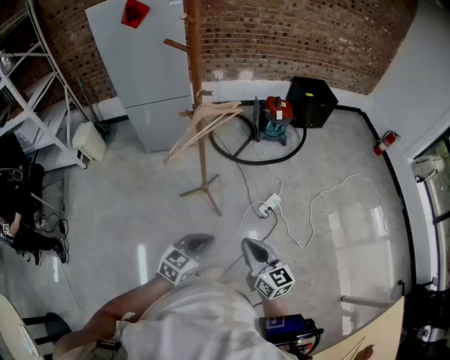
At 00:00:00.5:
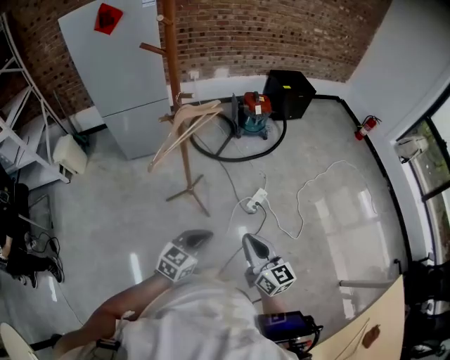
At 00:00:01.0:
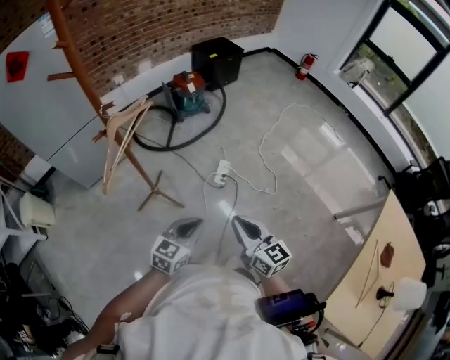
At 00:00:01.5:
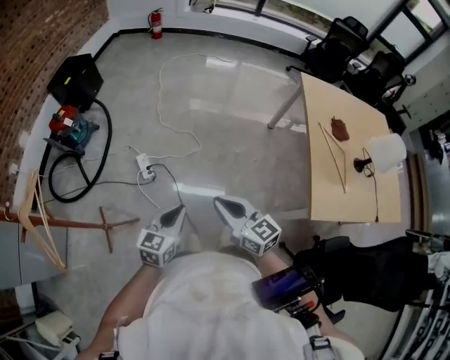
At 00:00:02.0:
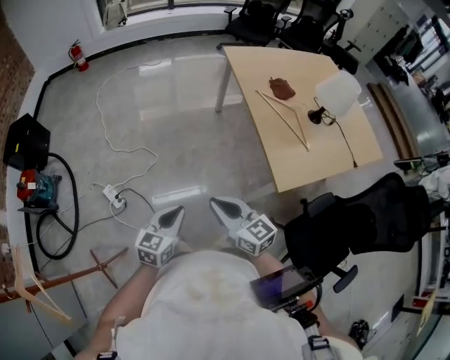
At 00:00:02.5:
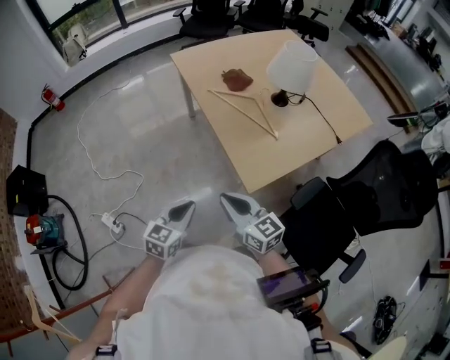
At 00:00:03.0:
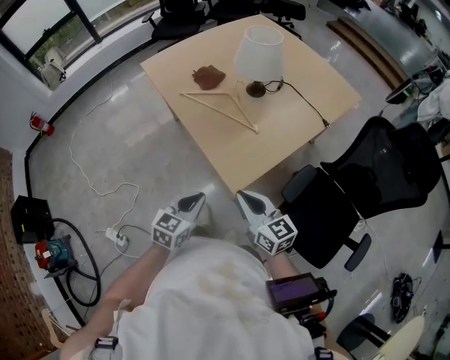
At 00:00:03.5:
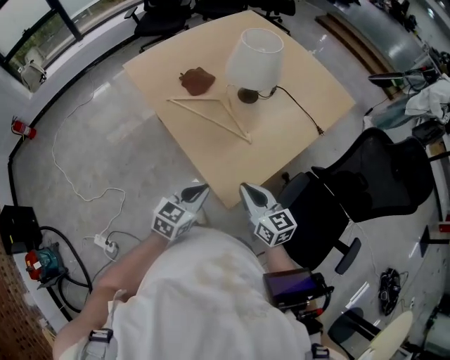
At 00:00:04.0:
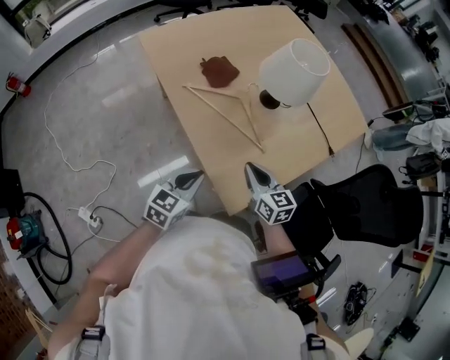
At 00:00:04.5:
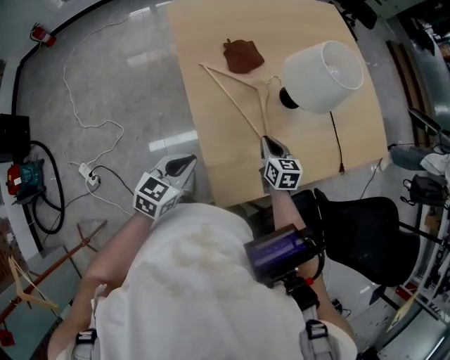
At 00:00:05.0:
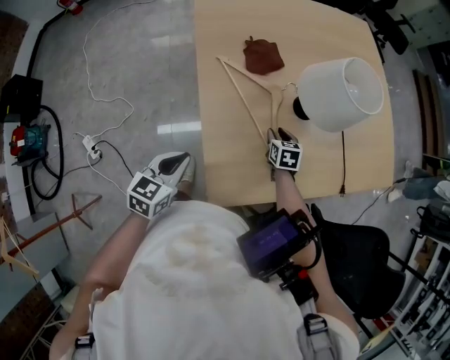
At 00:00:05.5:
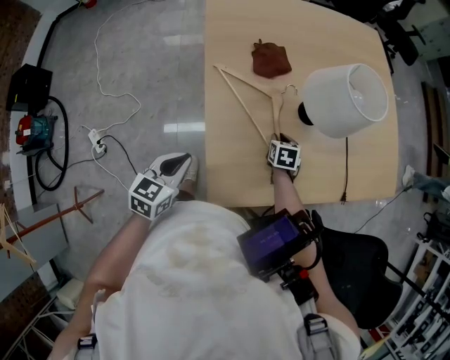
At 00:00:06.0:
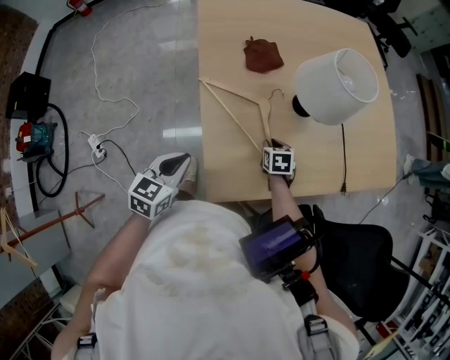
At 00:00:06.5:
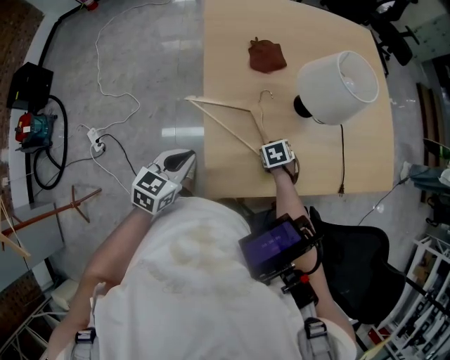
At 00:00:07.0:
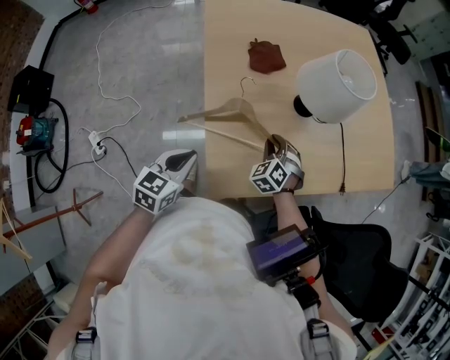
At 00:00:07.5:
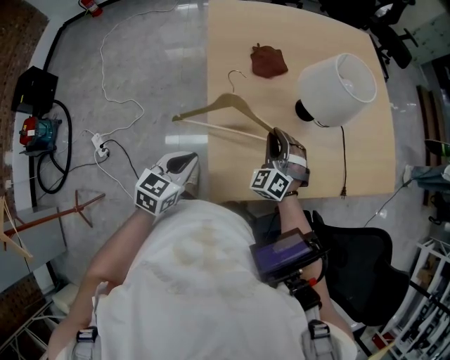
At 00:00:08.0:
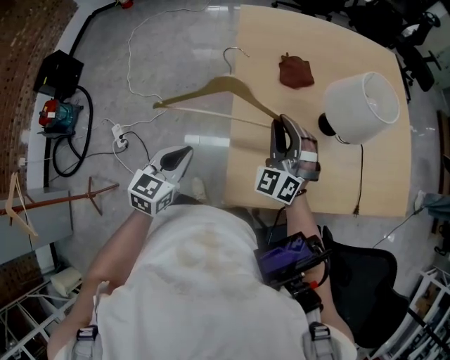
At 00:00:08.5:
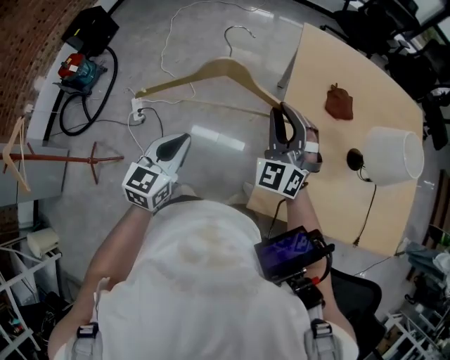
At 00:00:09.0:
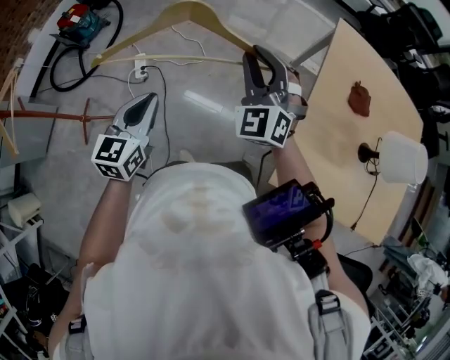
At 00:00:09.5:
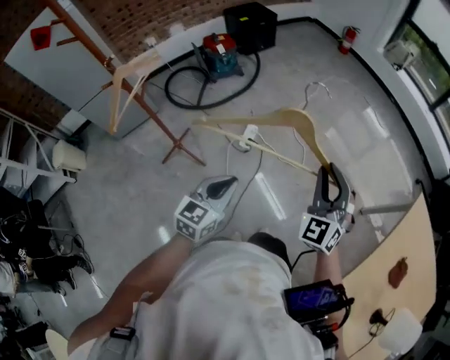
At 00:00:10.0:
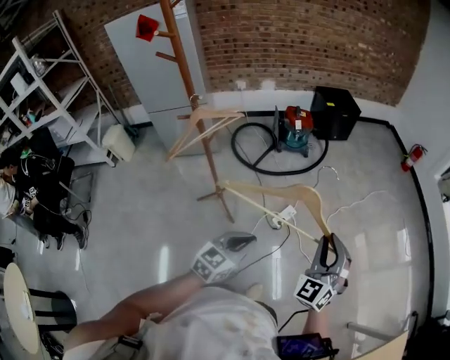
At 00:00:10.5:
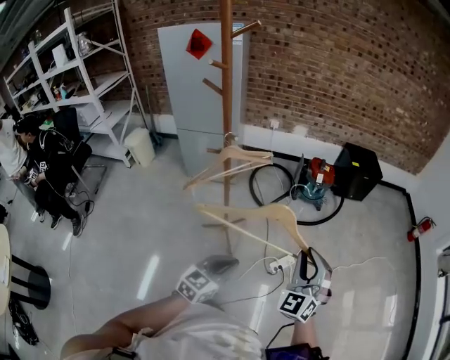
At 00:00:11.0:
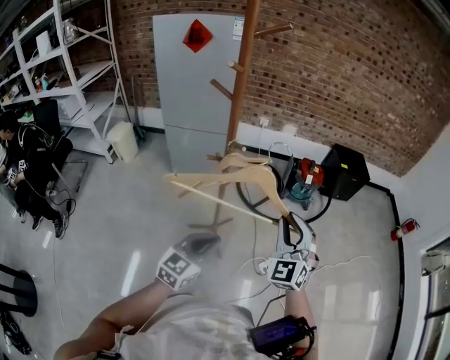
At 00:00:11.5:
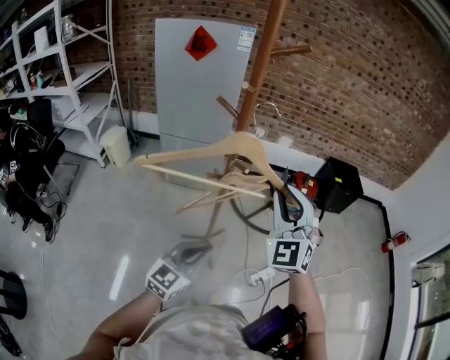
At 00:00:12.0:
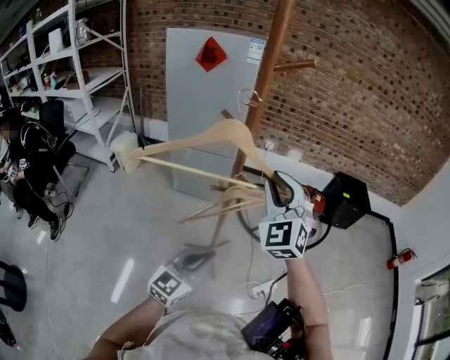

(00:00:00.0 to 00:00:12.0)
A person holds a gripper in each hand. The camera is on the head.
00:00:00.0 - 00:00:02.0: The right gripper moves roughly 35 cm, and rotates roughly 80 degrees, while the left gripper changes place by about 35 cm, and turns by roughly 80 degrees.
00:00:02.0 - 00:00:04.0: Both grippers are carried some 50 cm. The left gripper swivels approximately 30 degrees. Meanwhile the right gripper changes its angle by approximately 40 degrees.
00:00:04.0 - 00:00:06.0: The right gripper heads downward, forward and to the right, covering roughly 20 cm, and tilts its fingers roughly 40 degrees downward. Meanwhile the left gripper turns by some 30 degrees.
00:00:06.0 - 00:00:08.0: The right gripper is displaced upward by about 25 cm, and tips its fingers upward by about 50 degrees, while the left gripper shifts by roughly 10 cm.
00:00:08.0 - 00:00:10.0: Both grippers are carried some 70 cm. The right gripper swivels about 70 degrees; the left gripper changes its angle by some 70 degrees.
00:00:10.0 - 00:00:12.0: The left gripper ends up some 30 cm from where it was, and rotates roughly 30 degrees, while the right gripper shifts by roughly 60 cm, and changes its angle by some 40 degrees.

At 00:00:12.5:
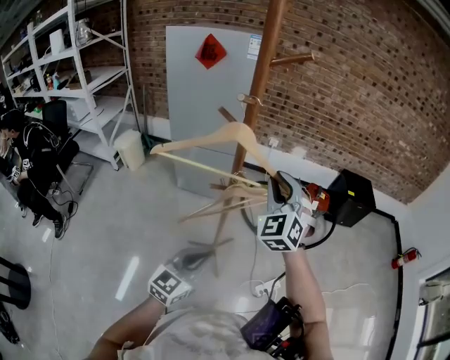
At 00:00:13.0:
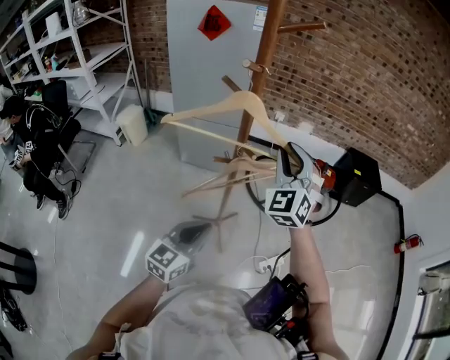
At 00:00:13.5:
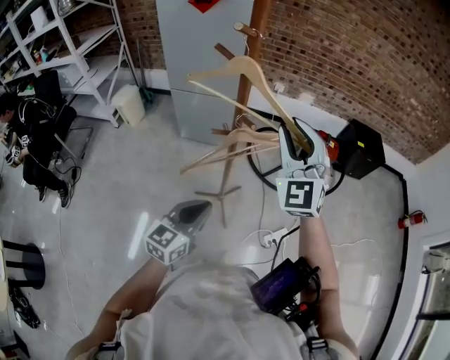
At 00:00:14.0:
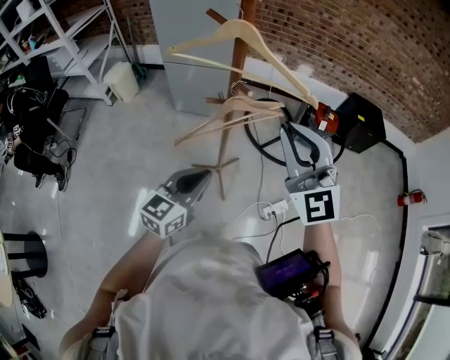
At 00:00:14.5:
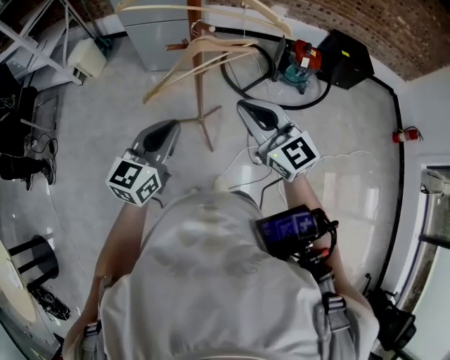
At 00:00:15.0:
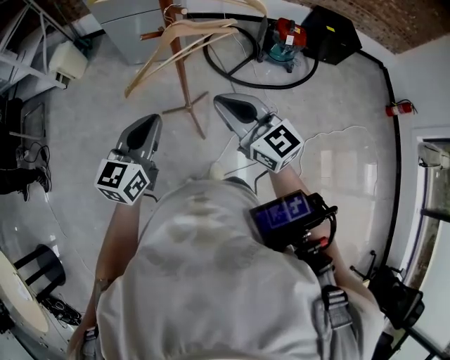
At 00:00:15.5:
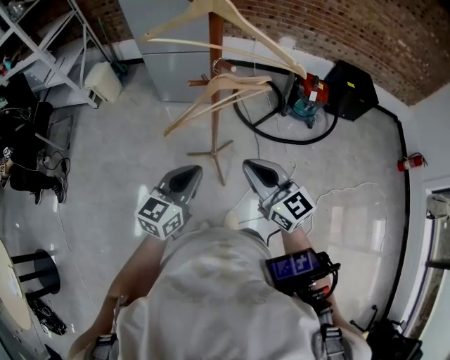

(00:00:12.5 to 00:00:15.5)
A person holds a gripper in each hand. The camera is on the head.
00:00:12.5 - 00:00:14.0: The right gripper shifts about 10 cm backward, and rotates roughly 30 degrees.
00:00:14.0 - 00:00:15.5: The right gripper travels downward and backward by some 20 cm, and rolls clockwise, seen from behind, by about 40 degrees.

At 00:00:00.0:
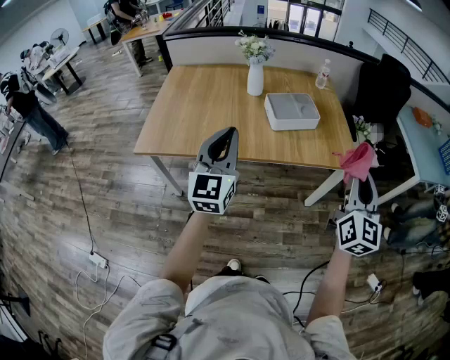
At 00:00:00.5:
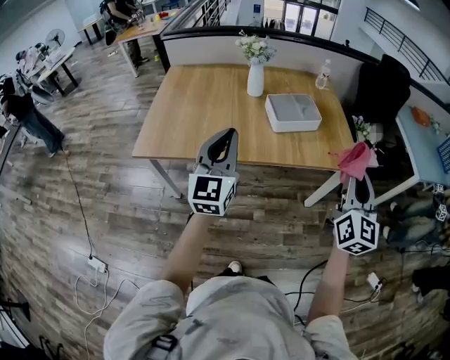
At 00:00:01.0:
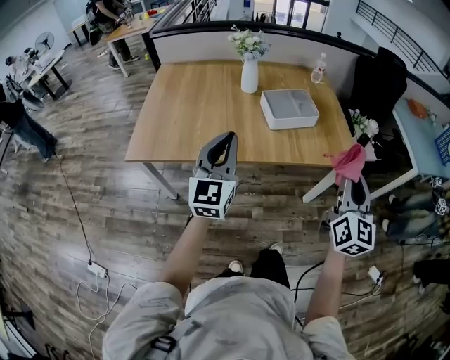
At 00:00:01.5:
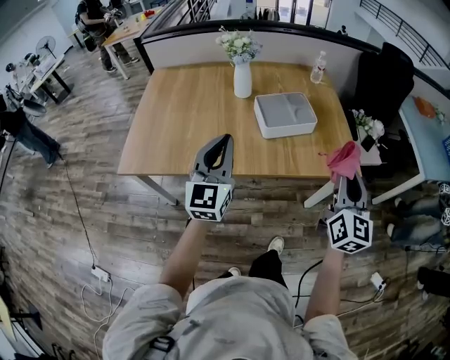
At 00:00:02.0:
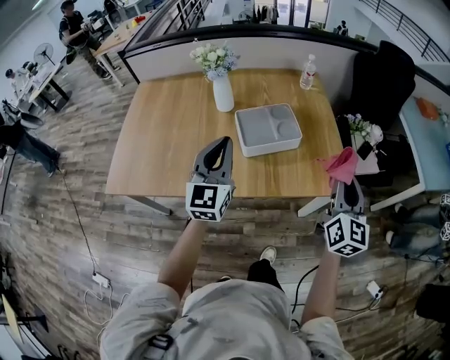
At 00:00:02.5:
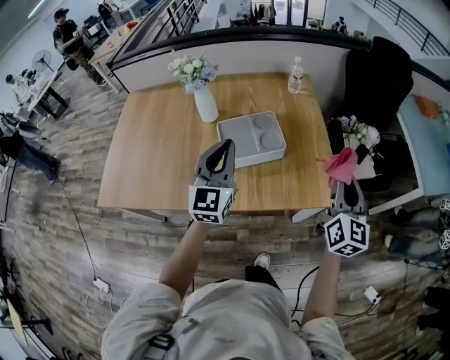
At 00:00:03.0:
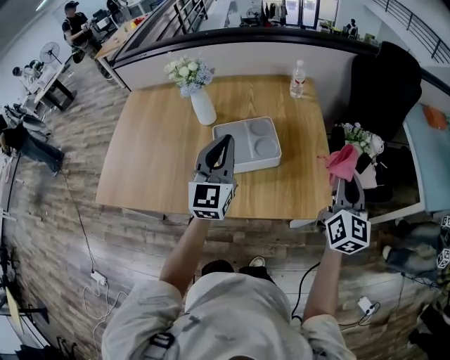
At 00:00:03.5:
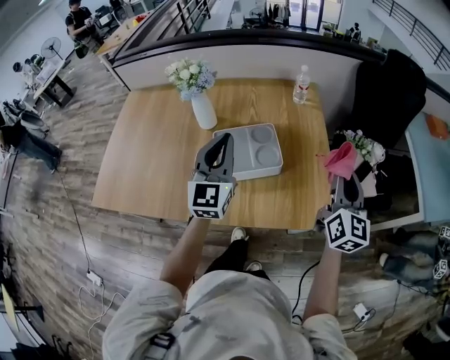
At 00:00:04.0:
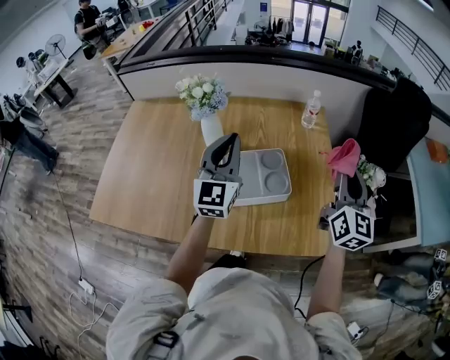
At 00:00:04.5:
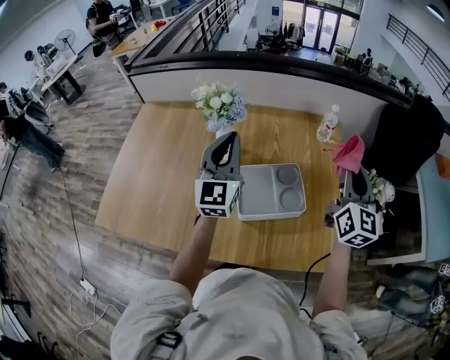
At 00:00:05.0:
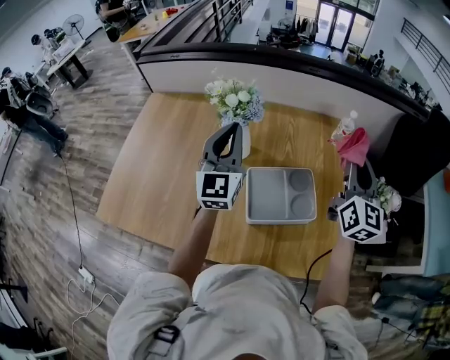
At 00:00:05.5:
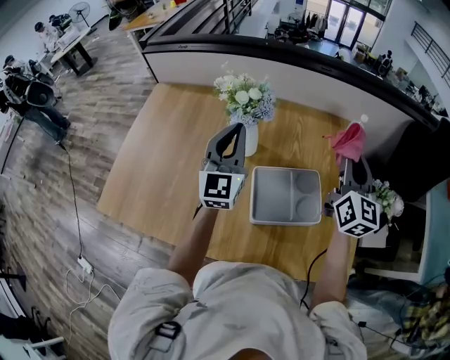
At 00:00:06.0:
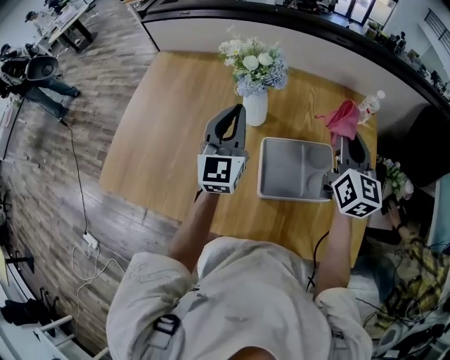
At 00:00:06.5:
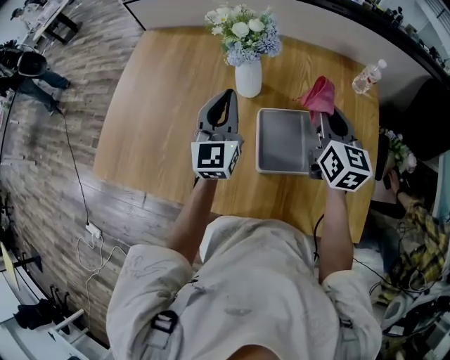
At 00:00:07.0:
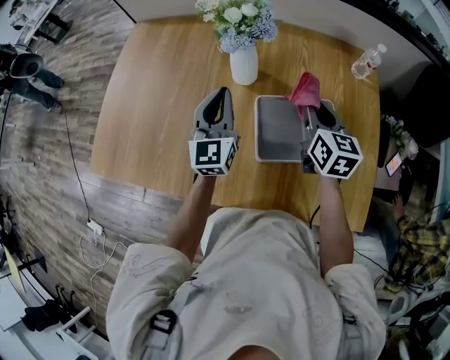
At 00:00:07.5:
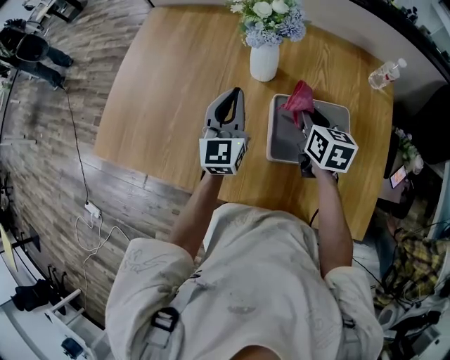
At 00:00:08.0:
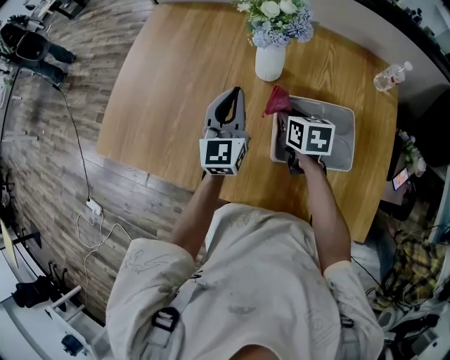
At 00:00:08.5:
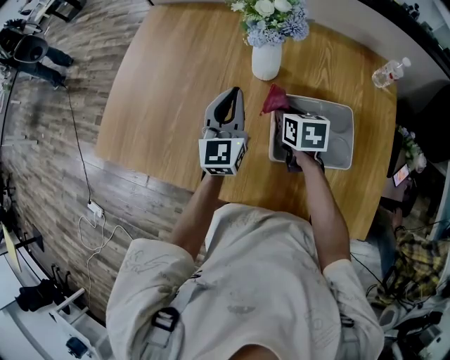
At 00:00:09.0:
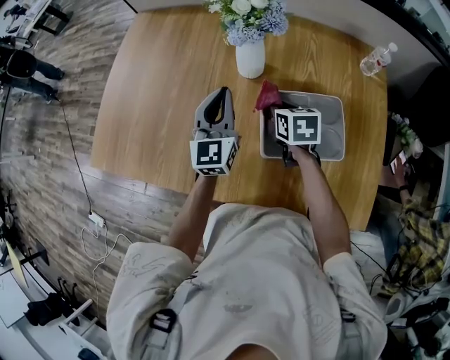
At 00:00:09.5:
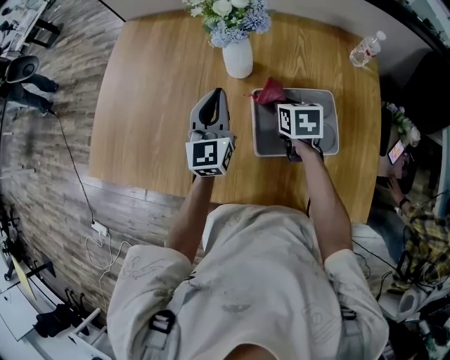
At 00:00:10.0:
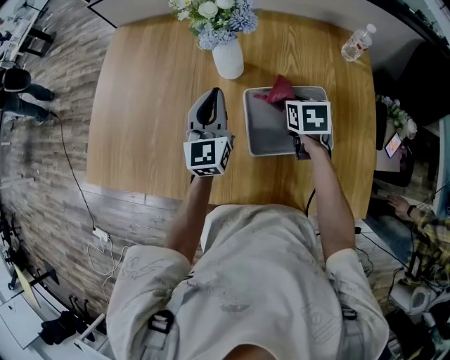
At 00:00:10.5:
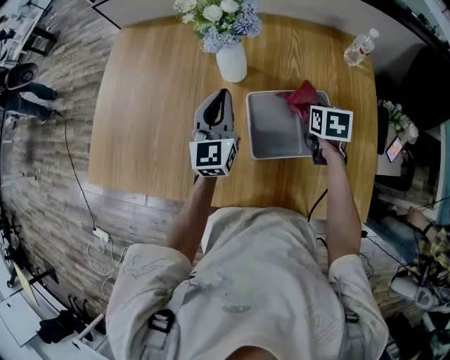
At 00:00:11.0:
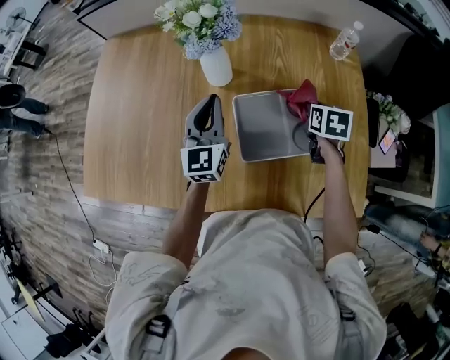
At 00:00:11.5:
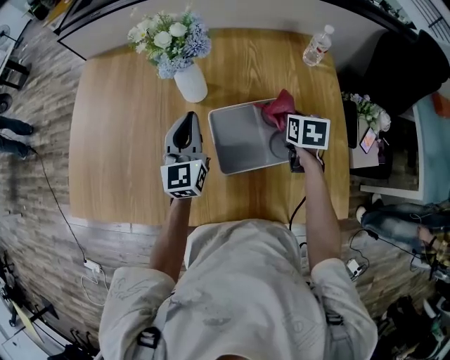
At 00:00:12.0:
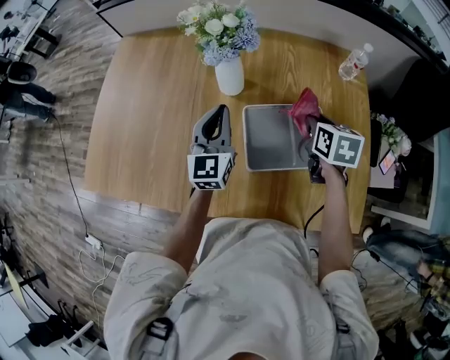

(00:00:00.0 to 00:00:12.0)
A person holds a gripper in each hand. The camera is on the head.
00:00:00.0 - 00:00:02.0: The two grippers go about 20 cm forward.
00:00:02.0 - 00:00:04.0: Both grippers move forward, approximately 20 cm.
00:00:04.0 - 00:00:06.0: Both grippers move to the left and forward, roughly 20 cm.
00:00:06.0 - 00:00:08.0: The right gripper goes about 30 cm downward and to the left, and angles its fingers downward, by about 40 degrees; the left gripper moves downward, about 10 cm.
00:00:08.0 - 00:00:10.0: The right gripper travels to the right by roughly 10 cm.
00:00:10.0 - 00:00:12.0: The right gripper goes approximately 10 cm upward and to the right.
